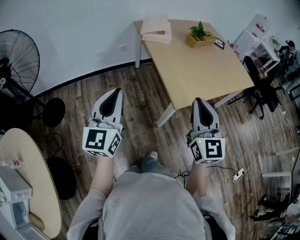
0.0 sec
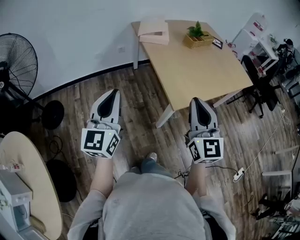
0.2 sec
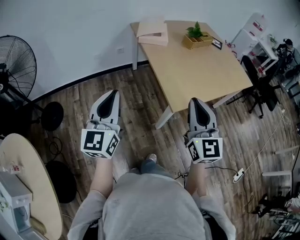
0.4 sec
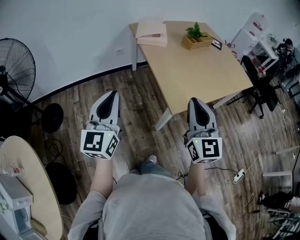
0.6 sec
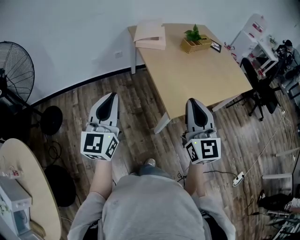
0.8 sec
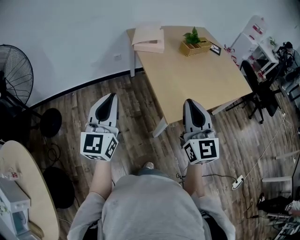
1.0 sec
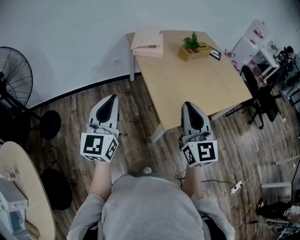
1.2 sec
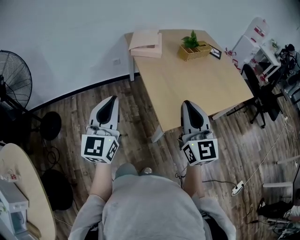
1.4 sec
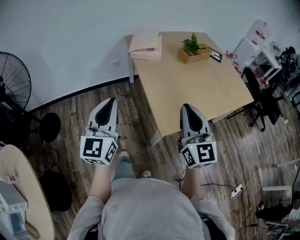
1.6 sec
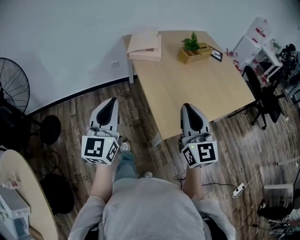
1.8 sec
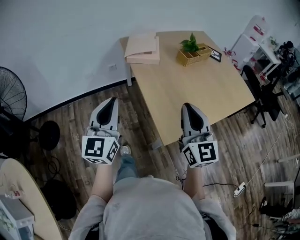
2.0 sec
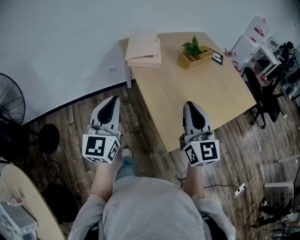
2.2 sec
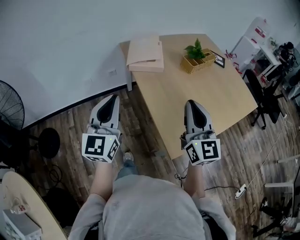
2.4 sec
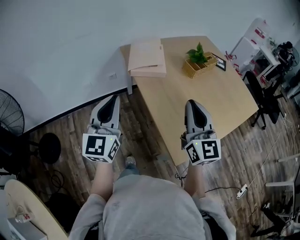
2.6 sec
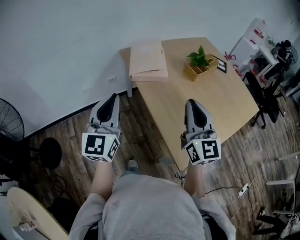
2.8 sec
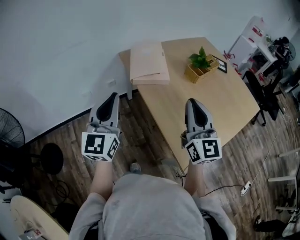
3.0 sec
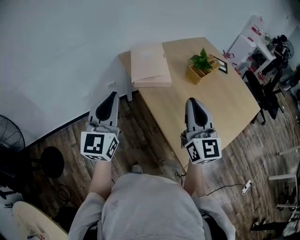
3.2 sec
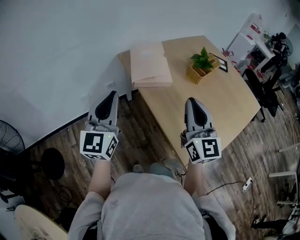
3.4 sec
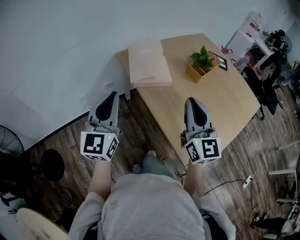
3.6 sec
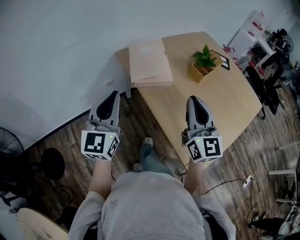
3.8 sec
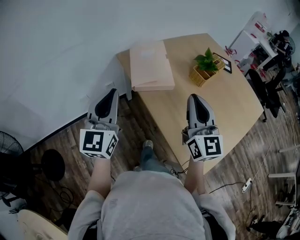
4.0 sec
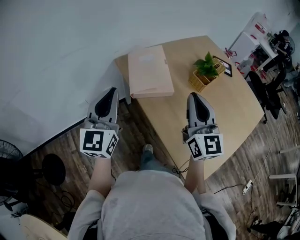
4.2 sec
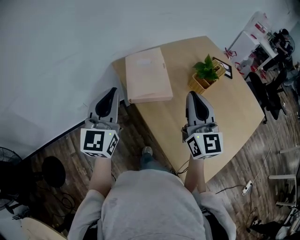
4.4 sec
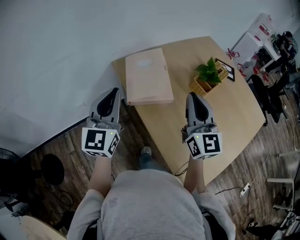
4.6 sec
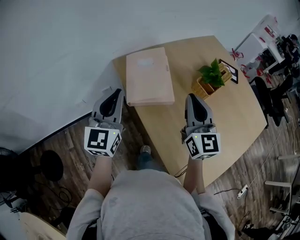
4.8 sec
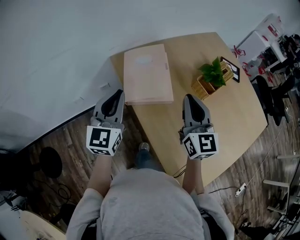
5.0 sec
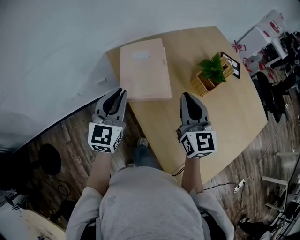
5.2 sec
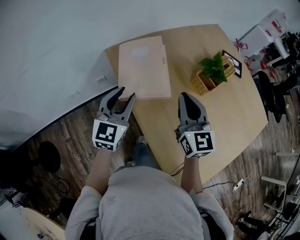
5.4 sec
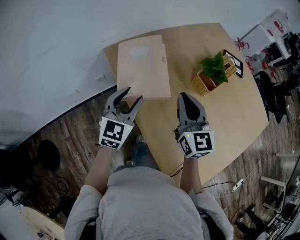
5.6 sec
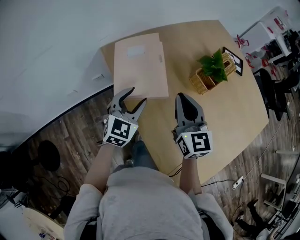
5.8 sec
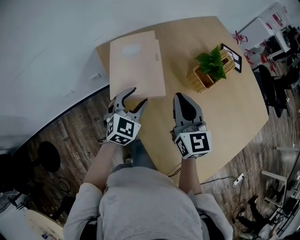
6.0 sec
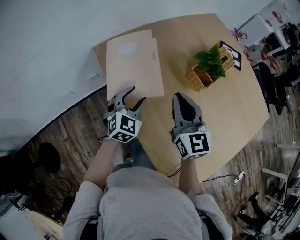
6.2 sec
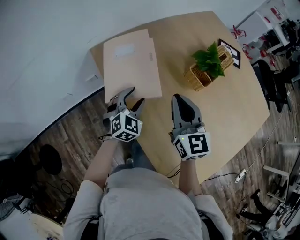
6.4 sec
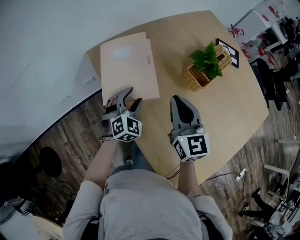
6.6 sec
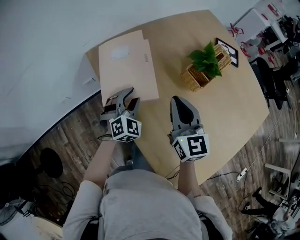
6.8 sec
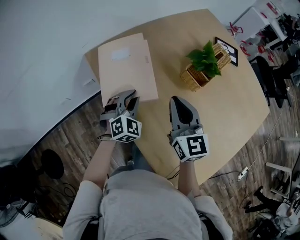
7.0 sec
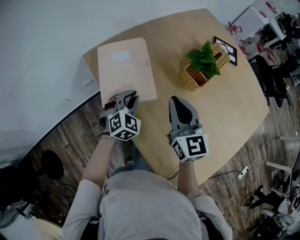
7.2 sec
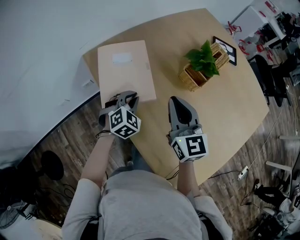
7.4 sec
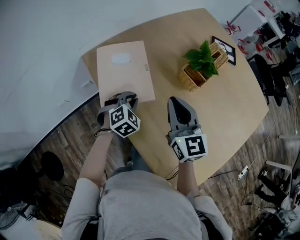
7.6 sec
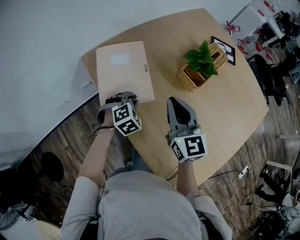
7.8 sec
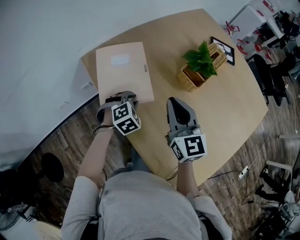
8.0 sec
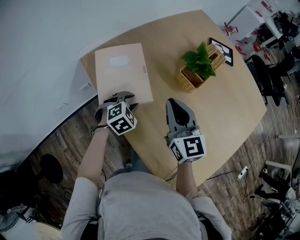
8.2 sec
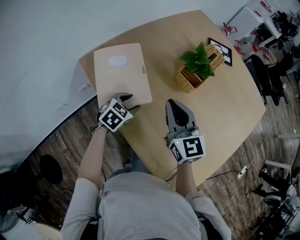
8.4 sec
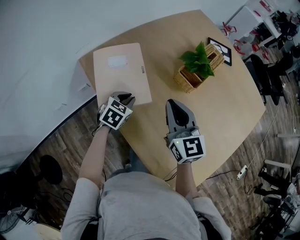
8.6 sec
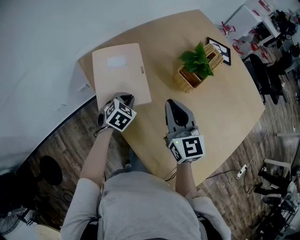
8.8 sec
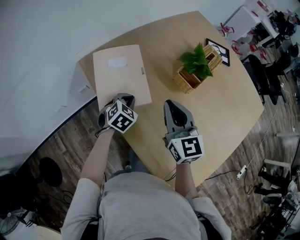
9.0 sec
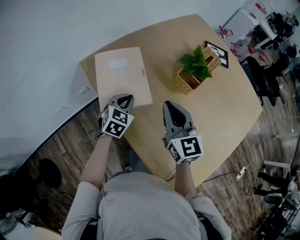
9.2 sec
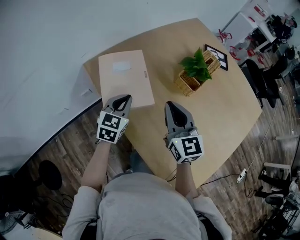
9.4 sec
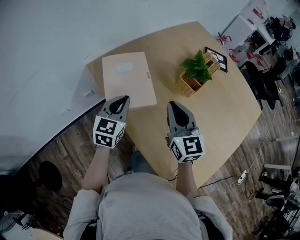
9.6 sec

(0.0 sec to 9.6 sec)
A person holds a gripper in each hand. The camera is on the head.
0.0 sec - 1.6 sec: Both grippers travel together forward and to the right, about 15 cm.
1.6 sec - 3.2 sec: The right gripper heads forward and to the left, covering approximately 30 cm. Meanwhile the left gripper heads forward, covering about 30 cm.
3.2 sec - 4.8 sec: Both grippers travel together forward, roughly 20 cm.
4.8 sec - 6.4 sec: The left gripper heads downward, to the right and forward, covering about 30 cm, tilts its fingers approximately 30 degrees downward, and opens its fingers; the right gripper travels downward and forward by approximately 10 cm.
6.4 sec - 8.0 sec: The left gripper changes place by roughly 5 cm, rotates some 30 degrees, and closes.
8.0 sec - 9.6 sec: The left gripper travels upward and to the left by some 15 cm, tips its fingers upward by about 40 degrees, and opens, then closes once more.

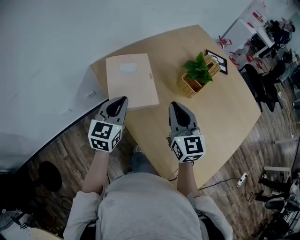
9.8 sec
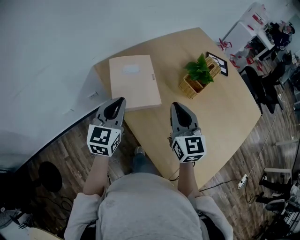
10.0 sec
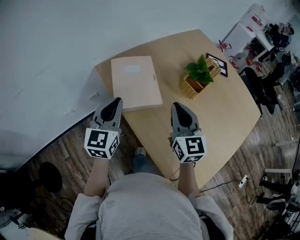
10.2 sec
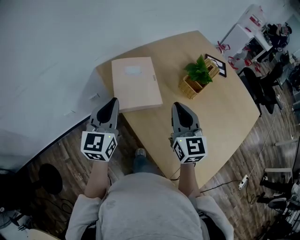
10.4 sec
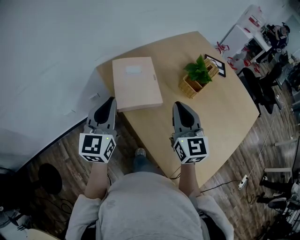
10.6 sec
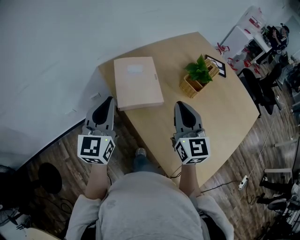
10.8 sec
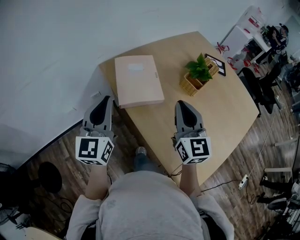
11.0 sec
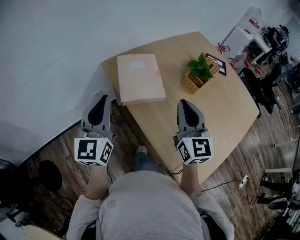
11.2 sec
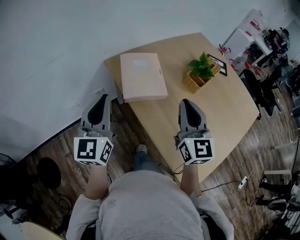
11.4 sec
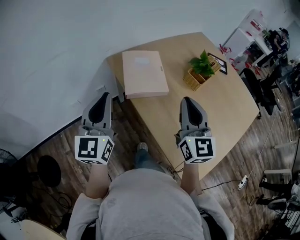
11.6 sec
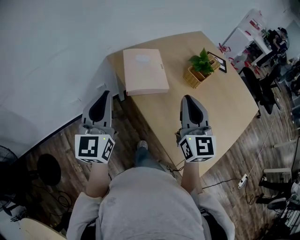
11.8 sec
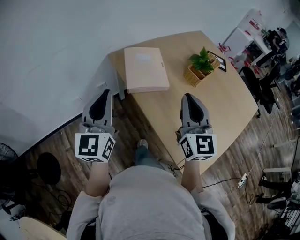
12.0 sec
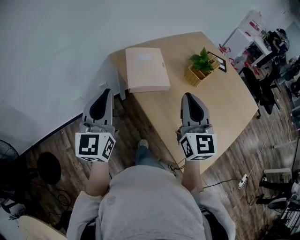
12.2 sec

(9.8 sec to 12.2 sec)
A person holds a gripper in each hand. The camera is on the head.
9.8 sec - 11.0 sec: The right gripper heads backward and upward, covering about 10 cm; the left gripper shifts some 15 cm upward, backward and to the left, and changes its angle by approximately 20 degrees.
11.0 sec - 12.2 sec: The grippers both shift backward by approximately 10 cm.

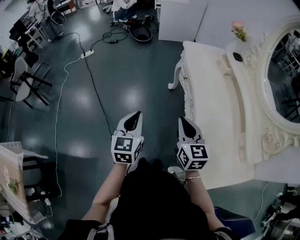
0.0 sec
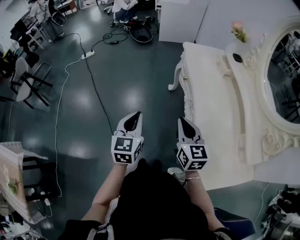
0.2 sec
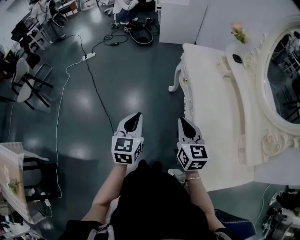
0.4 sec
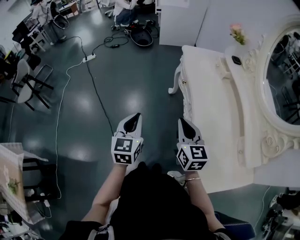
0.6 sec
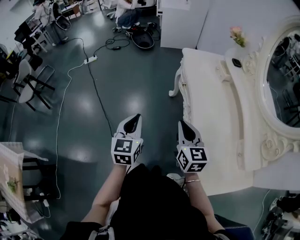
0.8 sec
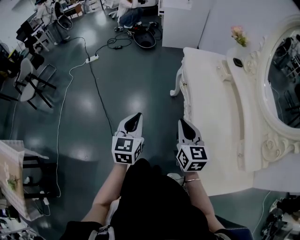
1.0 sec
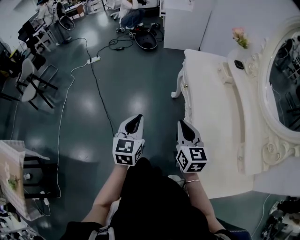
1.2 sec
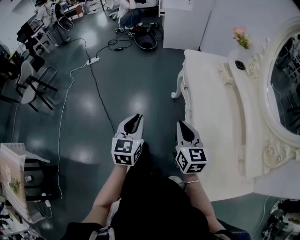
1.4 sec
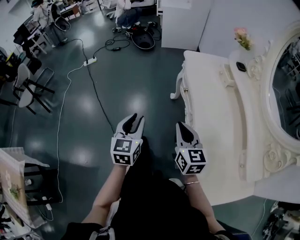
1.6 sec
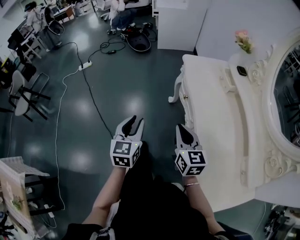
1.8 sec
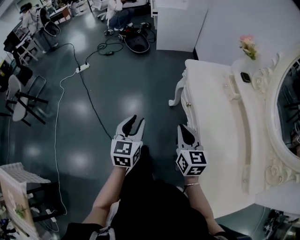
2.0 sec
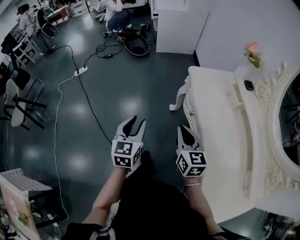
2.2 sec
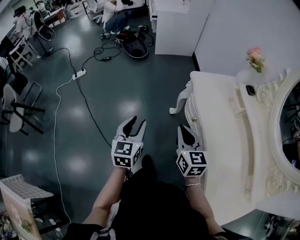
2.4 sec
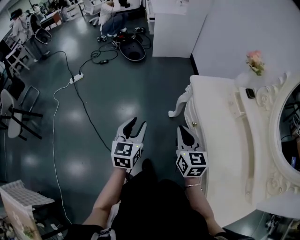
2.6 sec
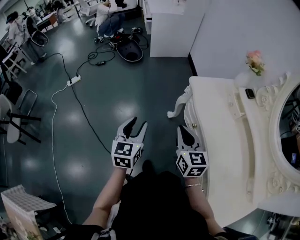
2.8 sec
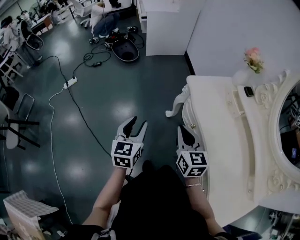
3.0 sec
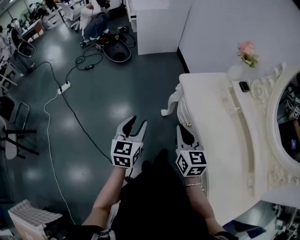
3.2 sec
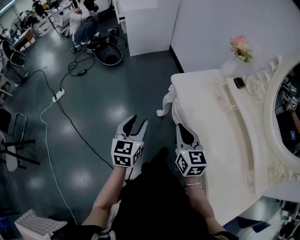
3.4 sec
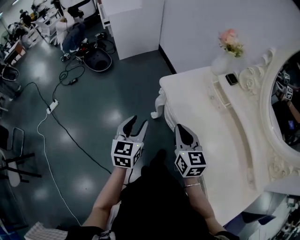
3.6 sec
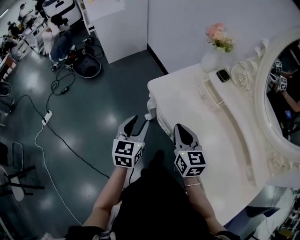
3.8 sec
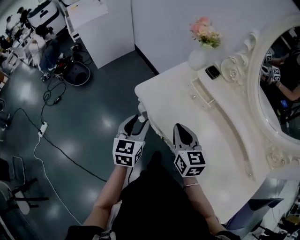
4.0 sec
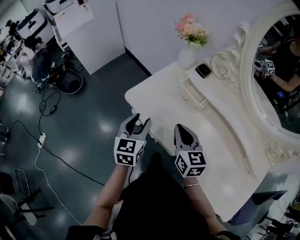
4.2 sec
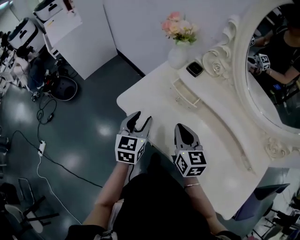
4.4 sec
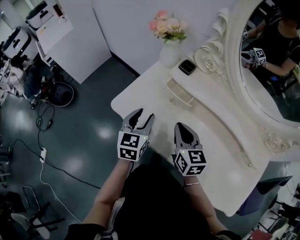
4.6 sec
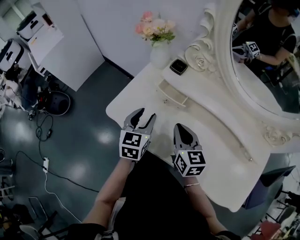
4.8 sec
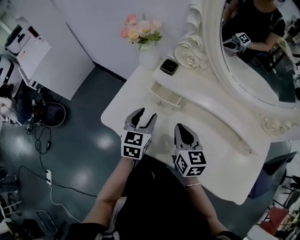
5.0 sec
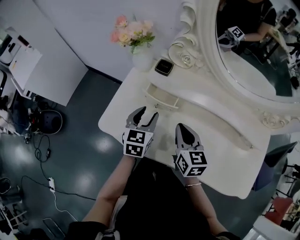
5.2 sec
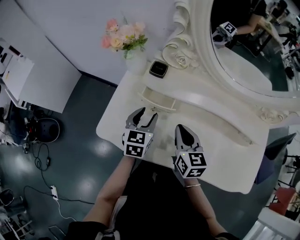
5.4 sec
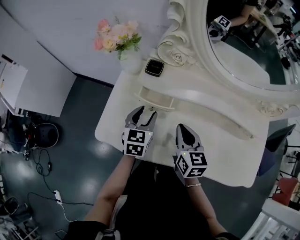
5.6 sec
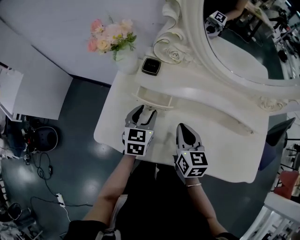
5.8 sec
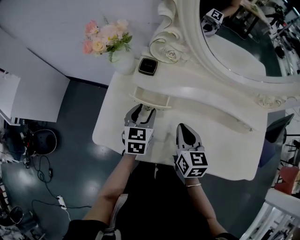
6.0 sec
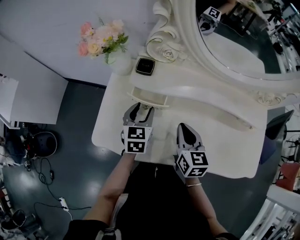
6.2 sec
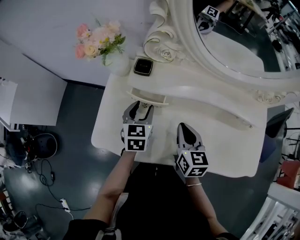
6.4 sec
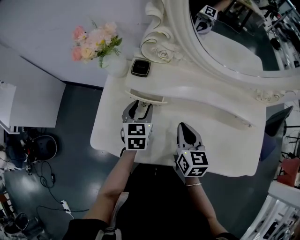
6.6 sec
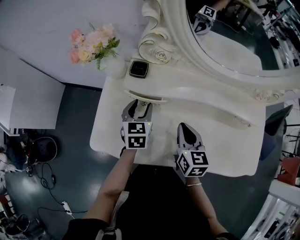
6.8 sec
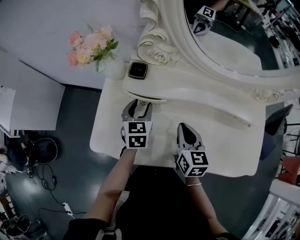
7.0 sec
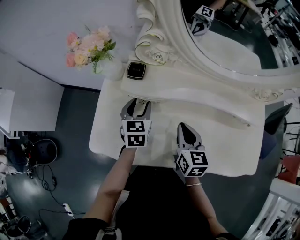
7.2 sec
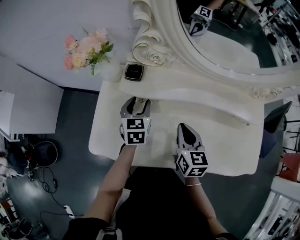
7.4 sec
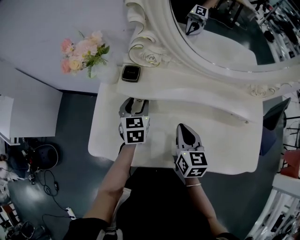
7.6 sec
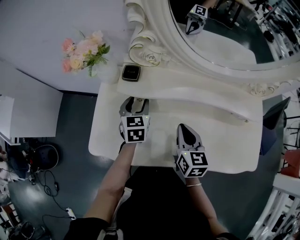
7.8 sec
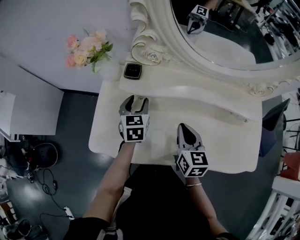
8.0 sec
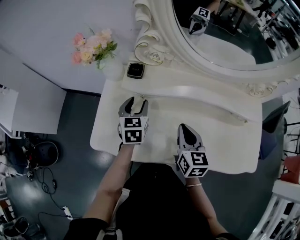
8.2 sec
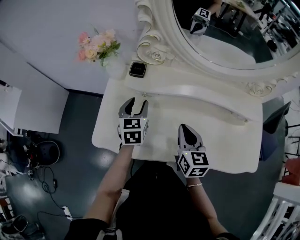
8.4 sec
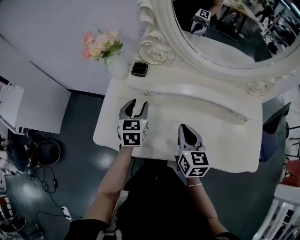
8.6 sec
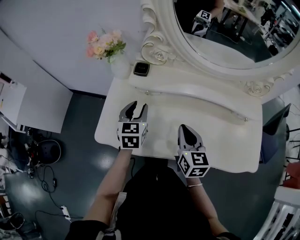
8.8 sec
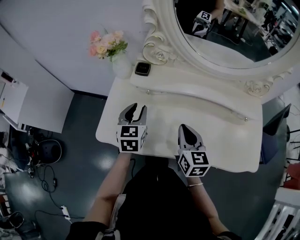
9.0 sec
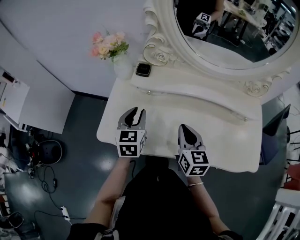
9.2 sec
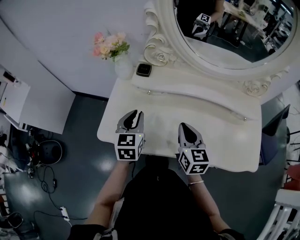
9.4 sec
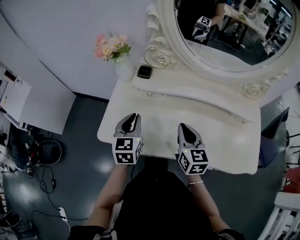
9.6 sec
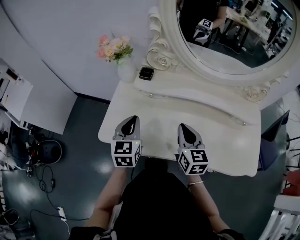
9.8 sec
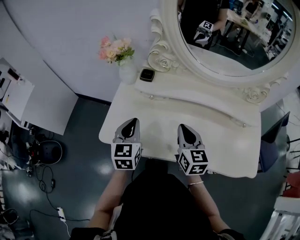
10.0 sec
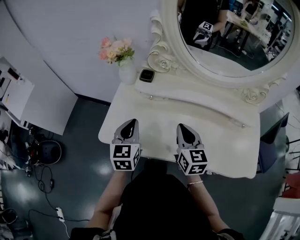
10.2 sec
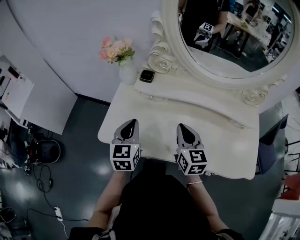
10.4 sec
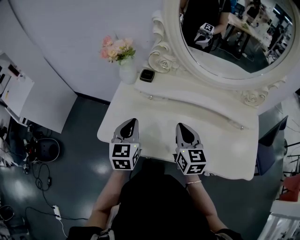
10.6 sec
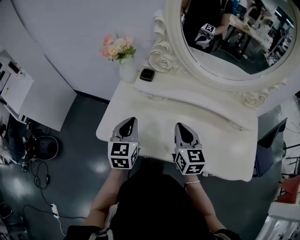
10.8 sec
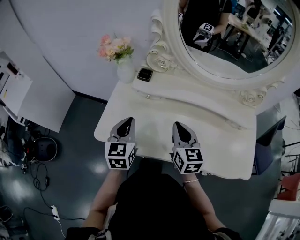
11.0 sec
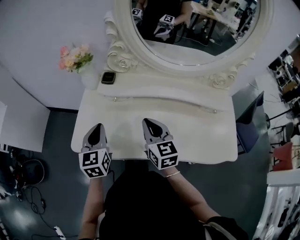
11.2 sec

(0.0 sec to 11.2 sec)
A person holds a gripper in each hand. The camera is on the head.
0.0 sec - 1.6 sec: Both grippers travel together forward, some 5 cm. The left gripper opens its fingers.
1.6 sec - 3.2 sec: The grippers both shift forward by approximately 25 cm.
3.2 sec - 4.8 sec: The left gripper changes place by some 40 cm, and rotates about 40 degrees, while the right gripper ends up some 30 cm from where it was, and swivels some 40 degrees.
4.8 sec - 6.4 sec: The left gripper heads forward and to the right, covering roughly 10 cm. The right gripper heads to the right, covering about 5 cm, and swivels some 30 degrees.
6.4 sec - 8.0 sec: The grippers make only small movements.
8.0 sec - 9.6 sec: The left gripper shifts some 15 cm backward and upward, and closes its fingers. Meanwhile the right gripper changes place by approximately 5 cm.
9.6 sec - 11.2 sec: There are only small adjustments of the grippers.
